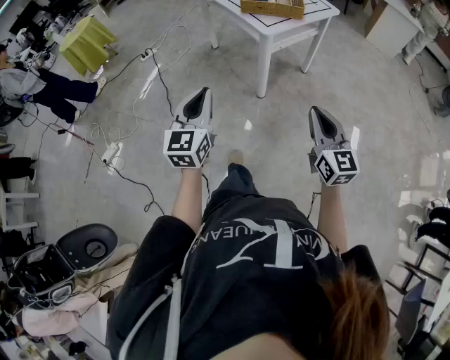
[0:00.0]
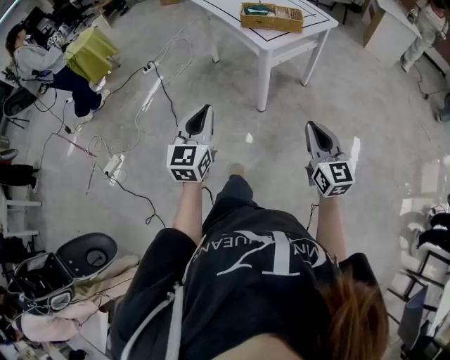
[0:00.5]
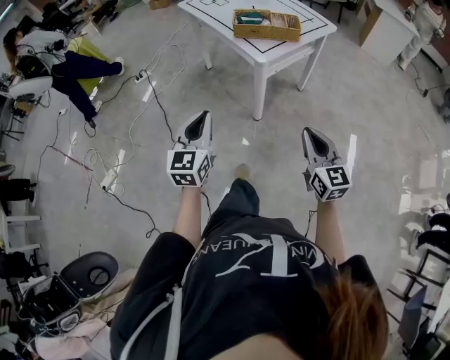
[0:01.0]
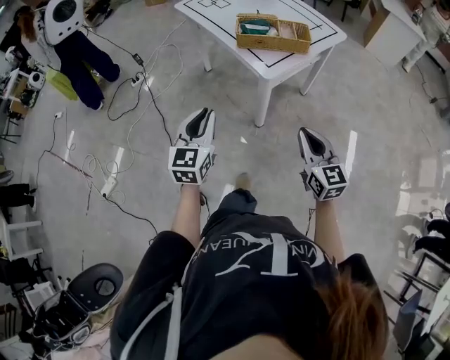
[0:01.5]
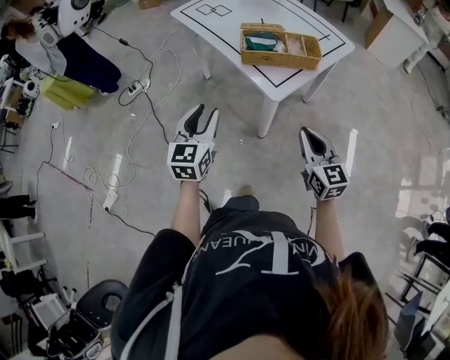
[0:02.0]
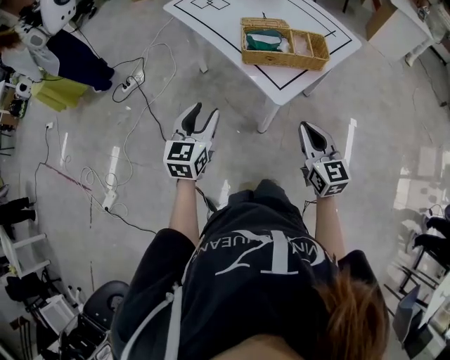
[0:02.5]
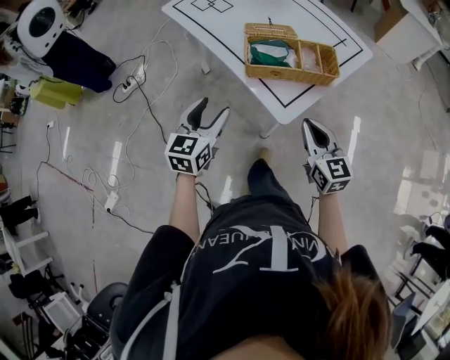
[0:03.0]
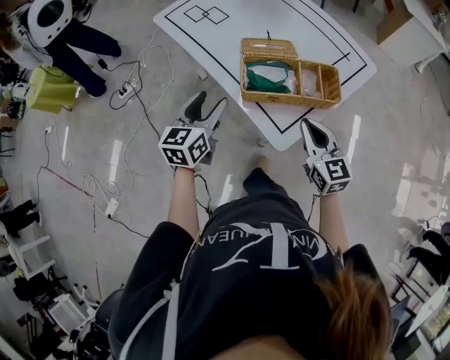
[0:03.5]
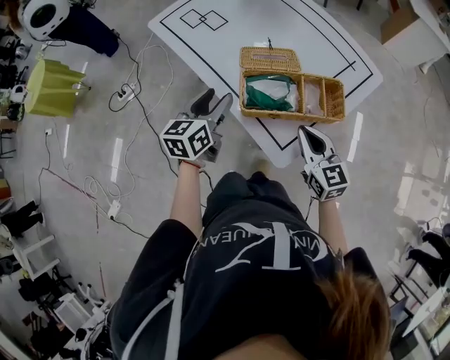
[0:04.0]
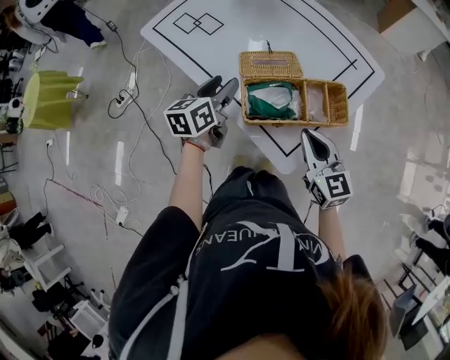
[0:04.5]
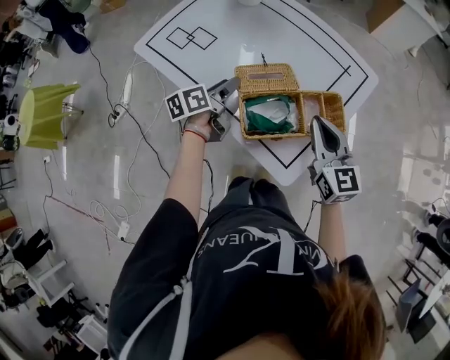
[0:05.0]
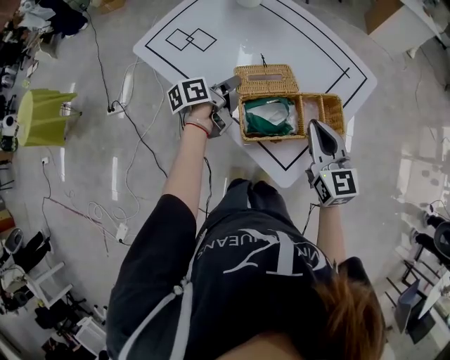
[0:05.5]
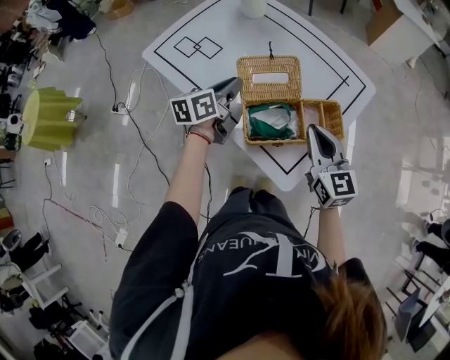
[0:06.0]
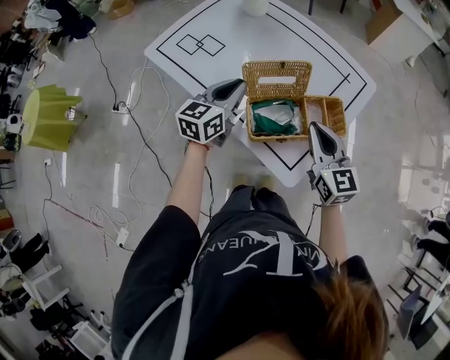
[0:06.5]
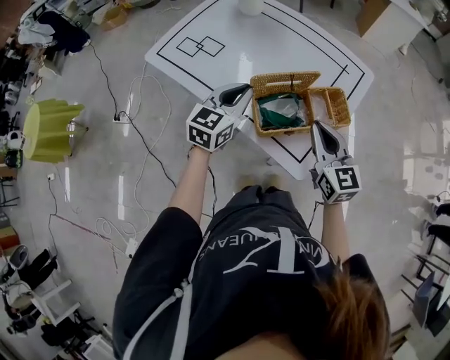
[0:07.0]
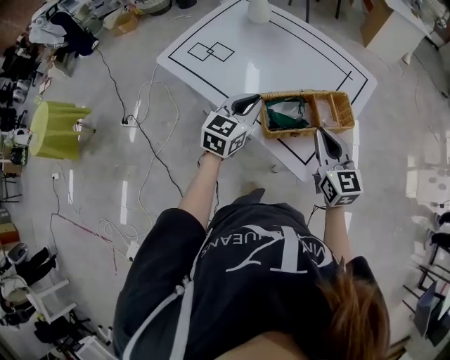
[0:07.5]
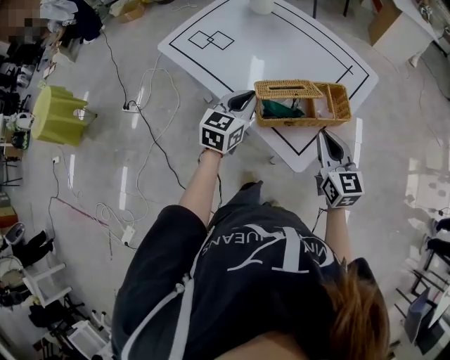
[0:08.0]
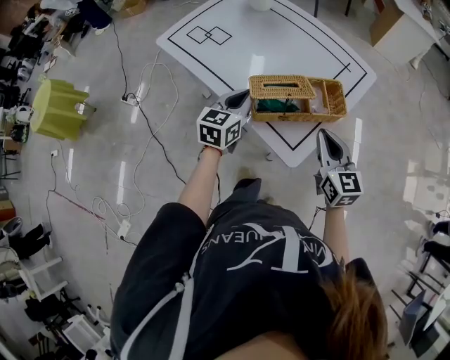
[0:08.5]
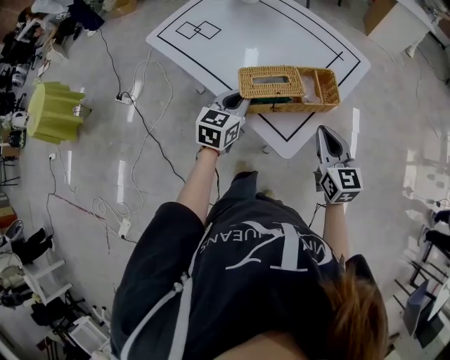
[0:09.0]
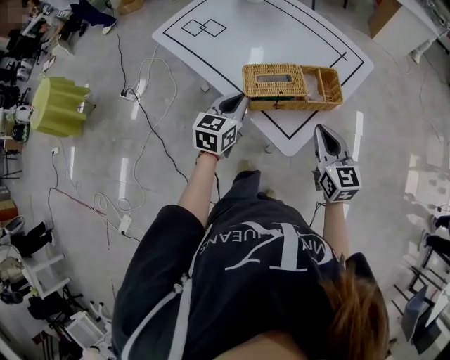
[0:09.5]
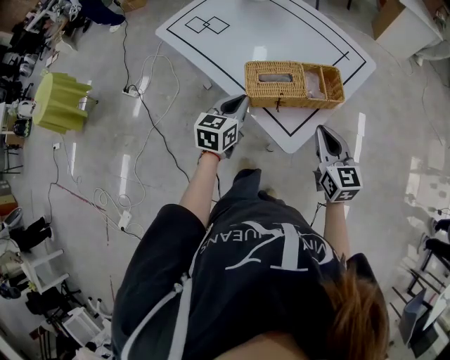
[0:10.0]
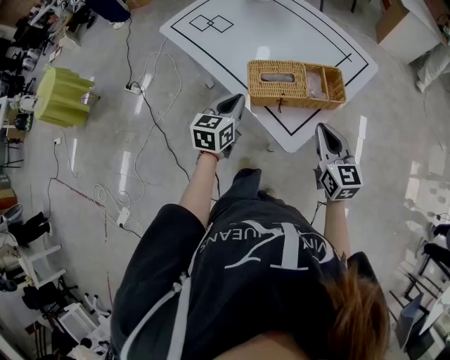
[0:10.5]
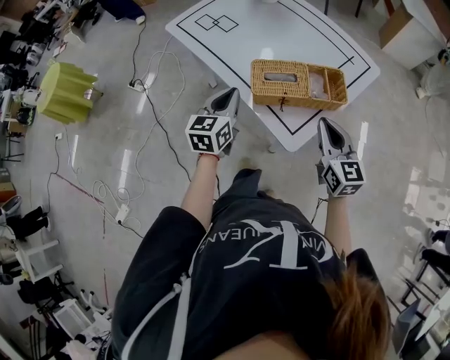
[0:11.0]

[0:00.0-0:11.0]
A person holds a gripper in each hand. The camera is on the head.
0:00.0 to 0:02.0: Both grippers move forward, some 30 cm. The left gripper opens.
0:02.0 to 0:03.5: Both grippers move forward, approximately 25 cm. The left gripper opens.
0:03.5 to 0:05.5: The right gripper moves forward, approximately 10 cm, while the left gripper goes roughly 20 cm forward, rotates around the line of its fingers by about 40 degrees, counterclockwise from behind, and closes up.
0:05.5 to 0:07.5: The left gripper heads backward and upward, covering roughly 15 cm, and rotates around the line of its fingers by approximately 60 degrees, clockwise from behind. Meanwhile the right gripper goes about 5 cm backward.
0:07.5 to 0:09.0: The left gripper ends up approximately 5 cm from where it was. Meanwhile the right gripper moves to the right, about 10 cm.
0:09.0 to 0:11.0: The left gripper goes approximately 5 cm to the left.

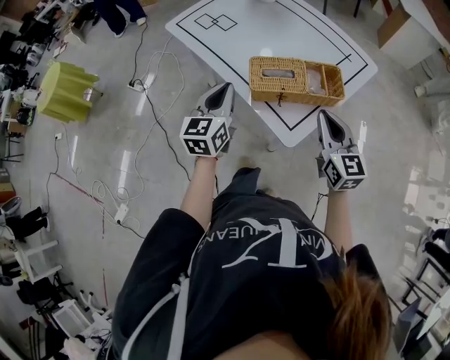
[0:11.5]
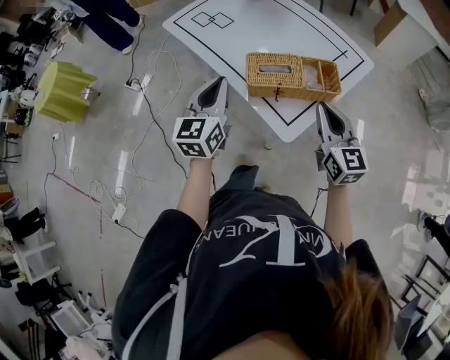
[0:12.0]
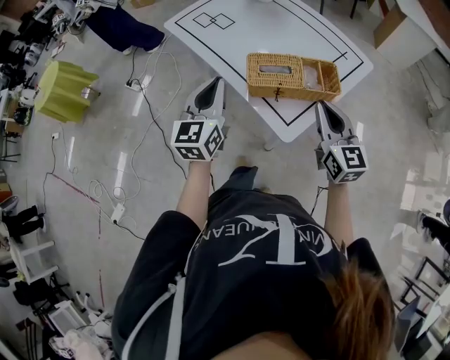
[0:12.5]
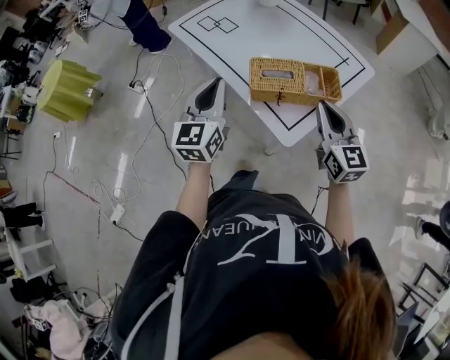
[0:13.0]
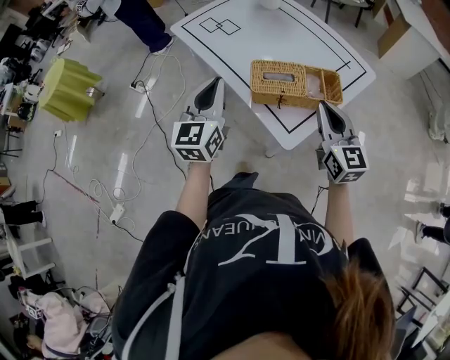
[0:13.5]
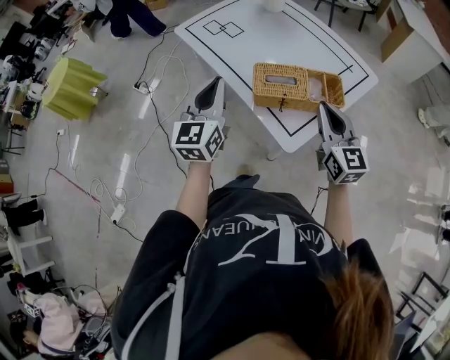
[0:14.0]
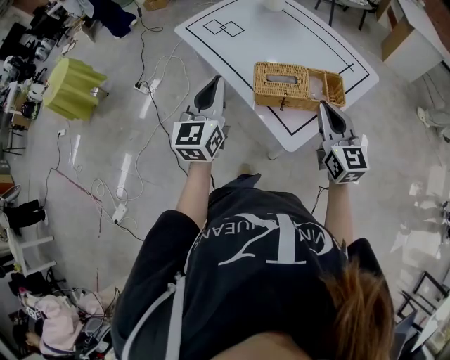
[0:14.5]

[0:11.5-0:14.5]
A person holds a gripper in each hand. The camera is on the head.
0:11.5 to 0:13.0: The left gripper goes about 5 cm upward.
0:13.0 to 0:14.5: The grippers make only small movements.

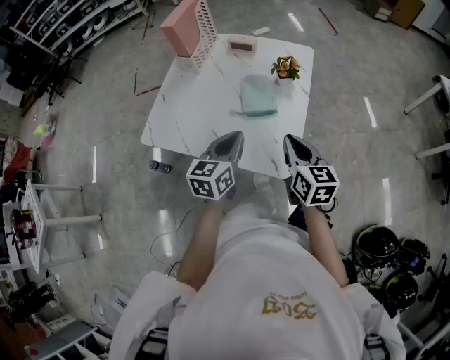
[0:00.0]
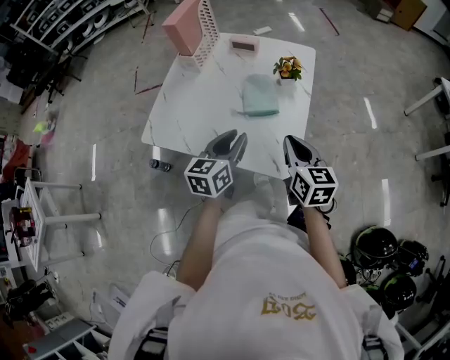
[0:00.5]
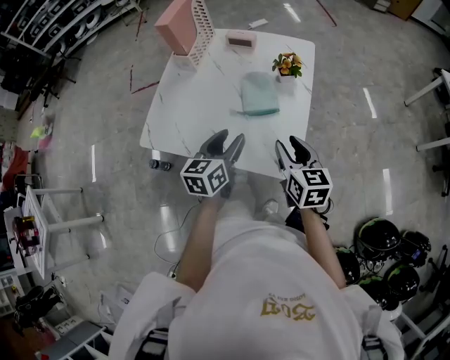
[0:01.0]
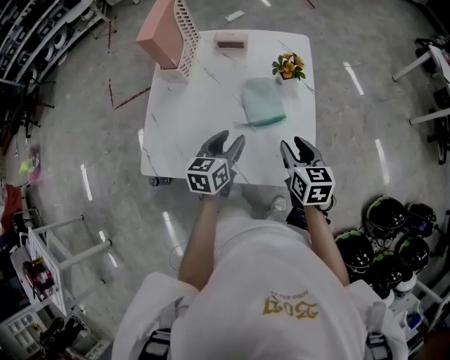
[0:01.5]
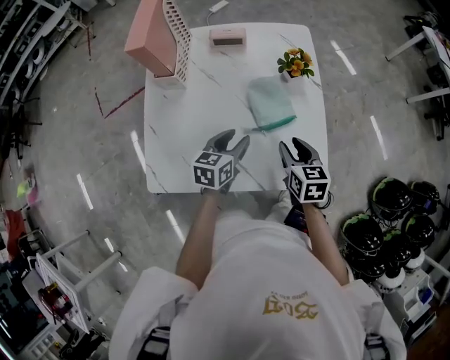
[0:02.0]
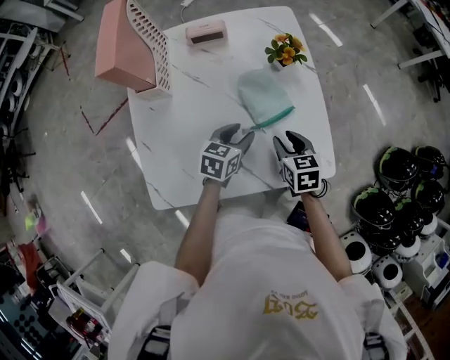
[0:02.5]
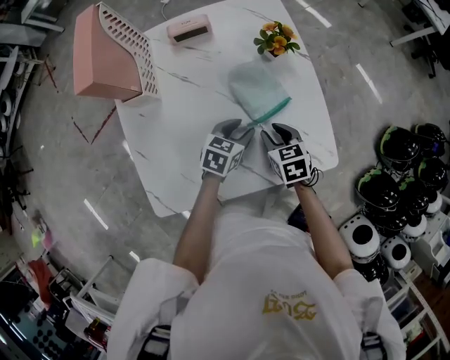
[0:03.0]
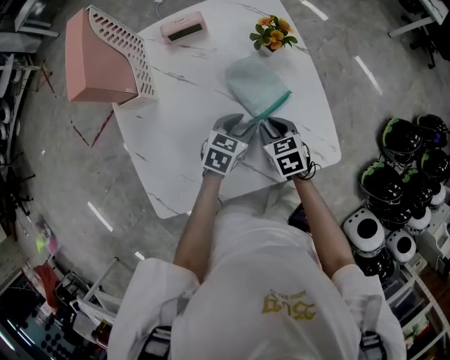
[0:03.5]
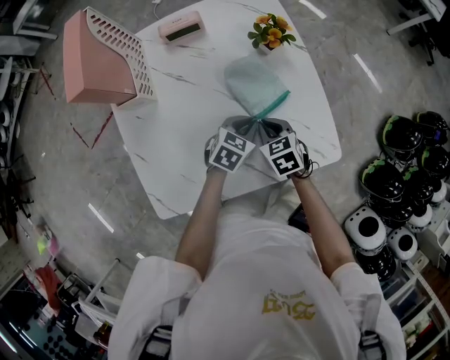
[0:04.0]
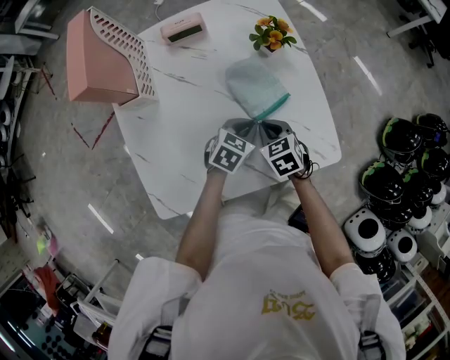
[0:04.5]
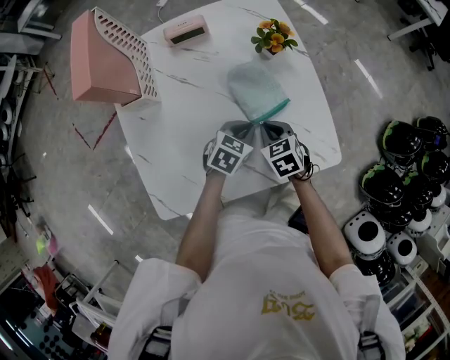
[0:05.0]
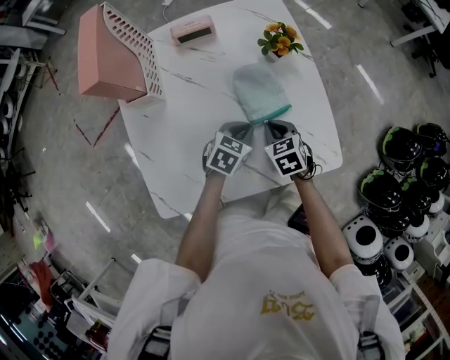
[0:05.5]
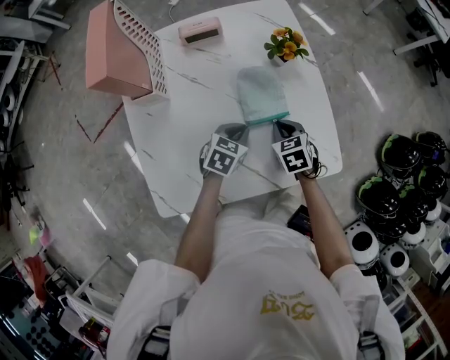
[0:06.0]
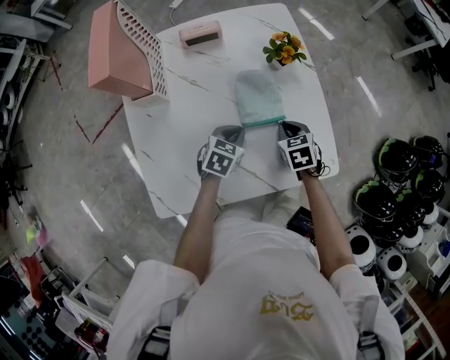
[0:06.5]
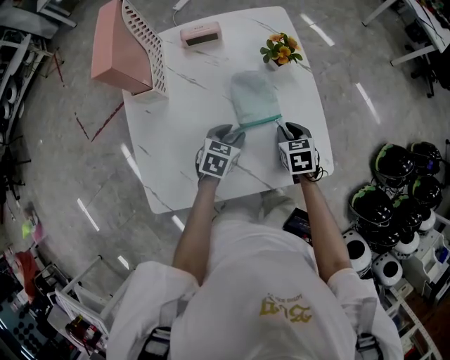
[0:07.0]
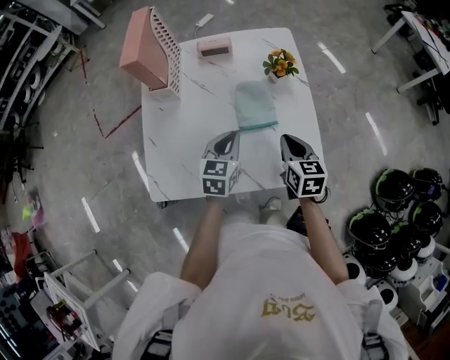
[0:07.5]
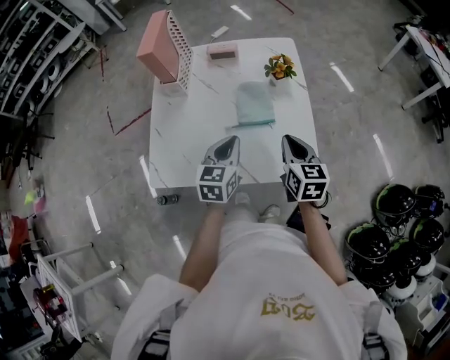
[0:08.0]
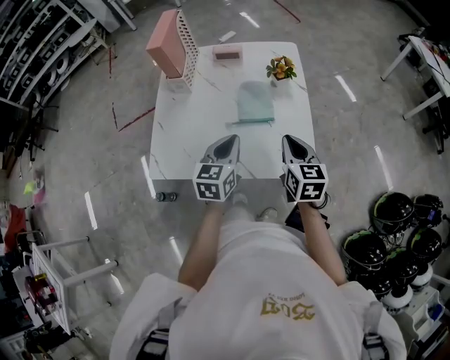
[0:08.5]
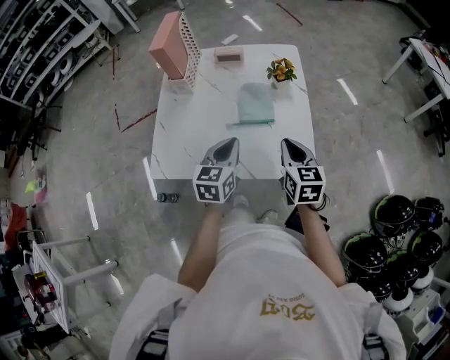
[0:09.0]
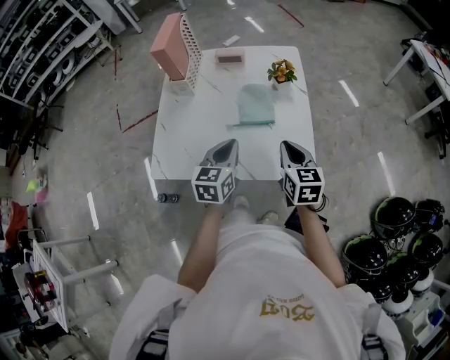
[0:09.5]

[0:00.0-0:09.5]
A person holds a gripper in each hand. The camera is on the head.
0:00.0 to 0:02.0: The left gripper moves forward, downward and to the left, about 20 cm, turns by roughly 30 degrees, and opens its fingers. The right gripper heads downward, to the left and forward, covering about 20 cm, changes its angle by some 30 degrees, and opens its fingers.
0:02.0 to 0:04.0: The right gripper shifts about 15 cm downward and to the left, and closes its fingers, while the left gripper travels downward and to the right by about 10 cm, changes its angle by some 40 degrees, and closes.
0:04.0 to 0:05.5: There are only small adjustments of the grippers.
0:05.5 to 0:07.5: The left gripper shifts some 10 cm upward, changes its angle by about 40 degrees, and opens and closes again, while the right gripper goes some 15 cm upward and to the right, and changes its angle by approximately 30 degrees.
0:07.5 to 0:09.5: The two grippers go roughly 10 cm backward and upward.

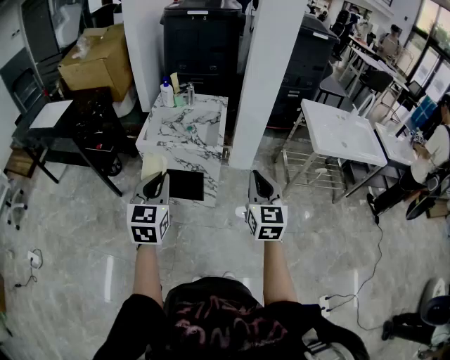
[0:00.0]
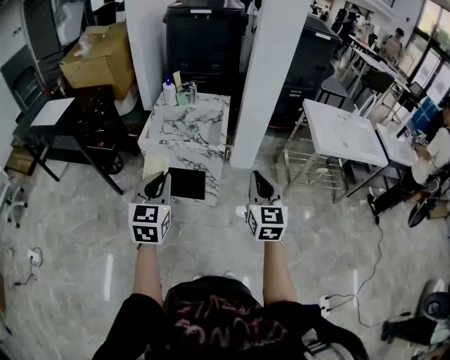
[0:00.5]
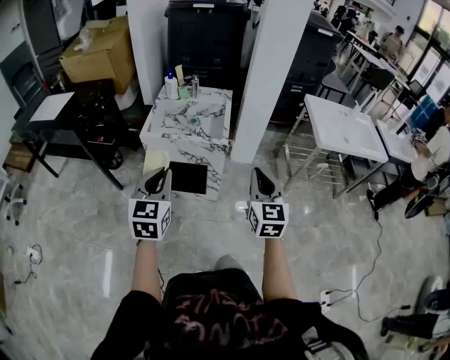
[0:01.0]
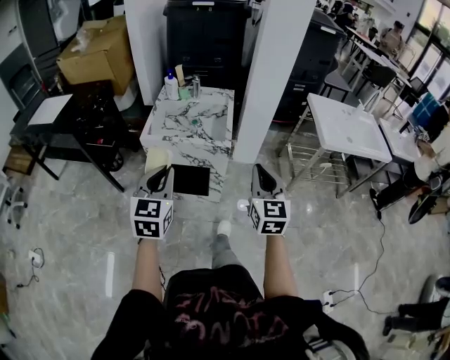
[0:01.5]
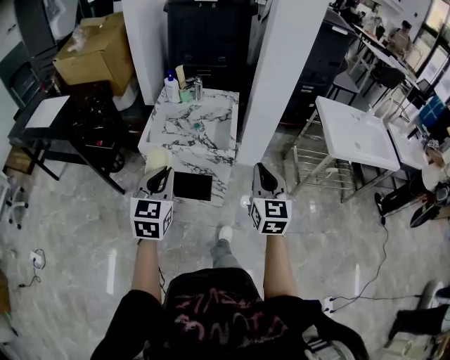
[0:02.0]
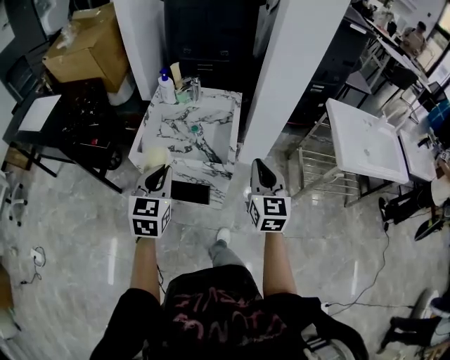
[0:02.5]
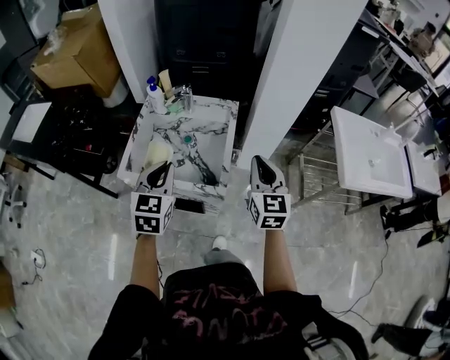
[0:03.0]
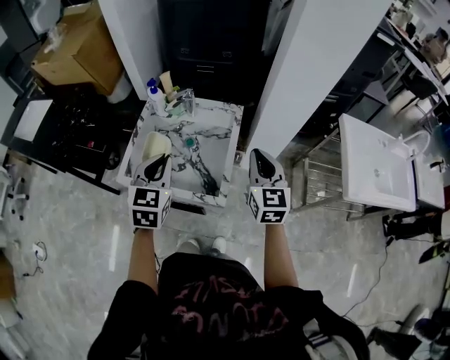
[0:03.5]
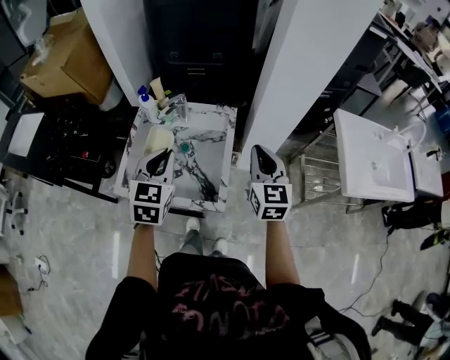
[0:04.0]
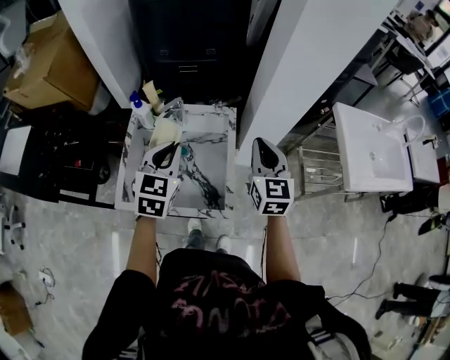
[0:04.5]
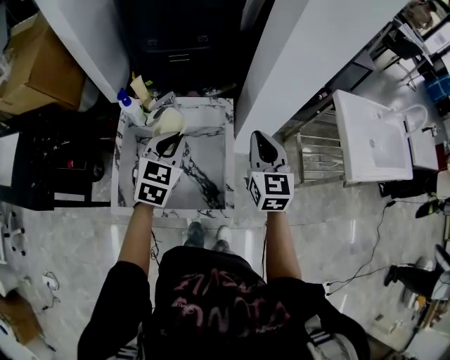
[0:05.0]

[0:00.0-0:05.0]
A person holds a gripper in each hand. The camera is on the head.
0:00.0 to 0:02.5: Both grippers travel together forward, some 25 cm.
0:02.5 to 0:05.0: The two grippers go roughly 30 cm forward. The left gripper rotates approximately 20 degrees.
